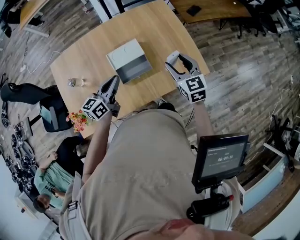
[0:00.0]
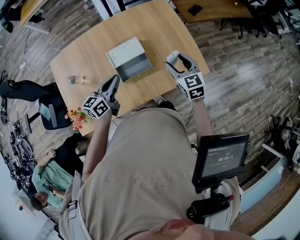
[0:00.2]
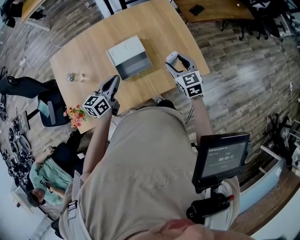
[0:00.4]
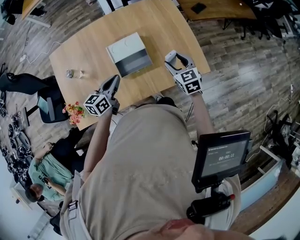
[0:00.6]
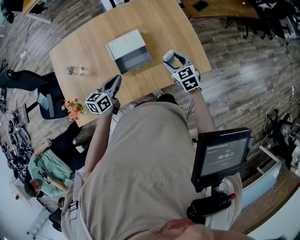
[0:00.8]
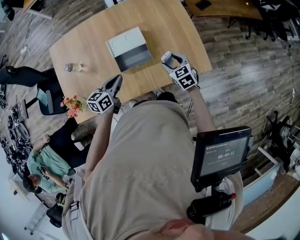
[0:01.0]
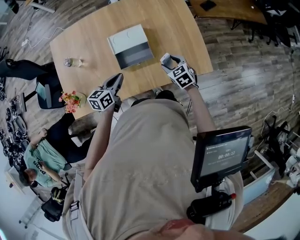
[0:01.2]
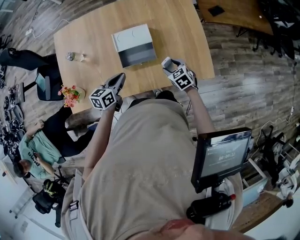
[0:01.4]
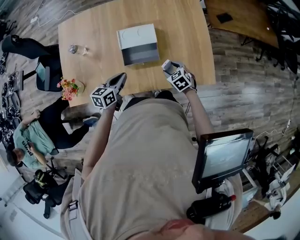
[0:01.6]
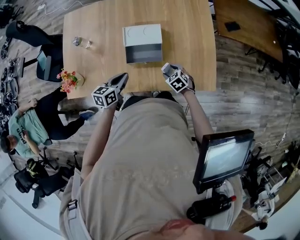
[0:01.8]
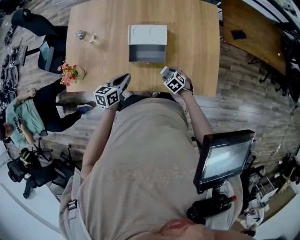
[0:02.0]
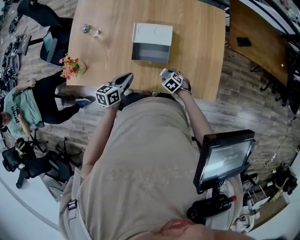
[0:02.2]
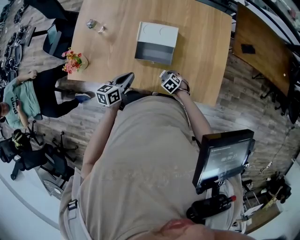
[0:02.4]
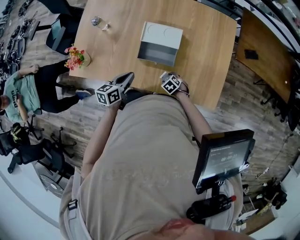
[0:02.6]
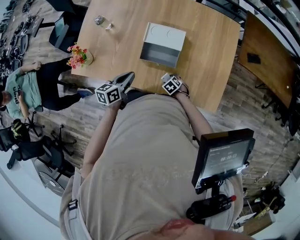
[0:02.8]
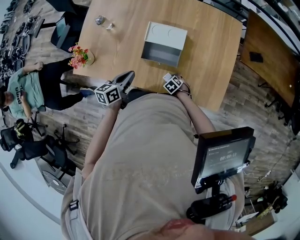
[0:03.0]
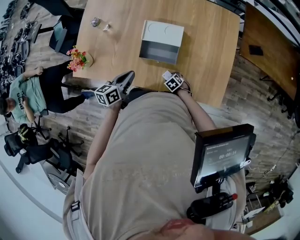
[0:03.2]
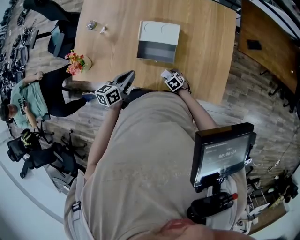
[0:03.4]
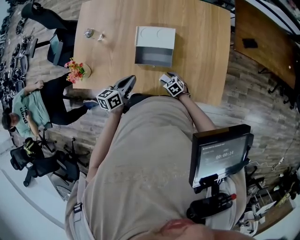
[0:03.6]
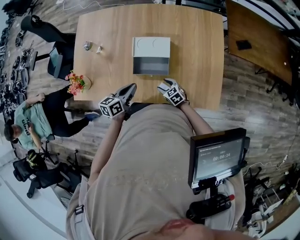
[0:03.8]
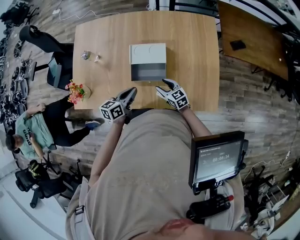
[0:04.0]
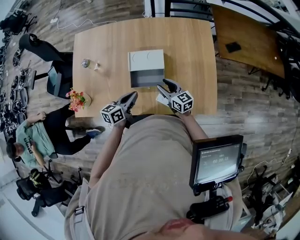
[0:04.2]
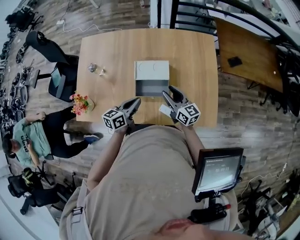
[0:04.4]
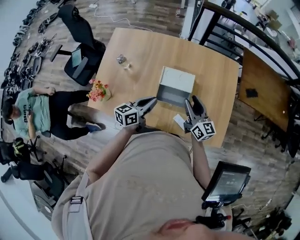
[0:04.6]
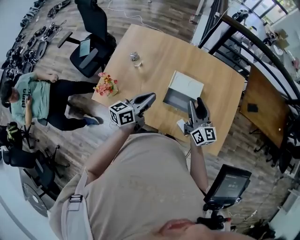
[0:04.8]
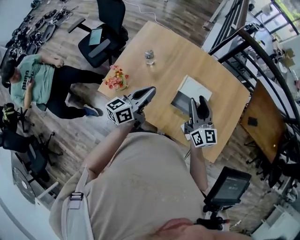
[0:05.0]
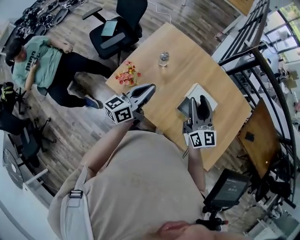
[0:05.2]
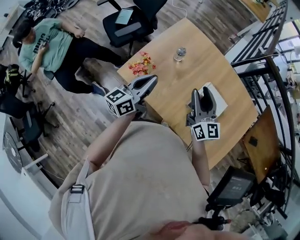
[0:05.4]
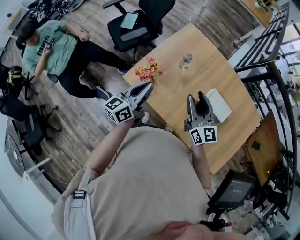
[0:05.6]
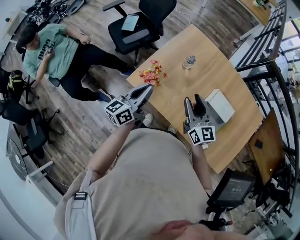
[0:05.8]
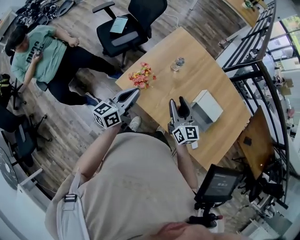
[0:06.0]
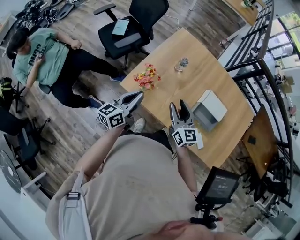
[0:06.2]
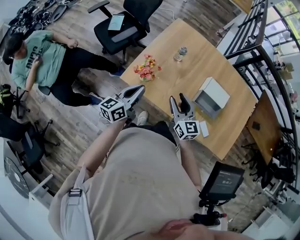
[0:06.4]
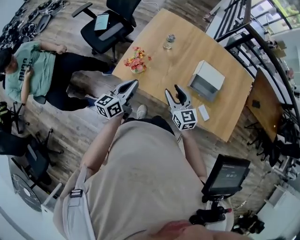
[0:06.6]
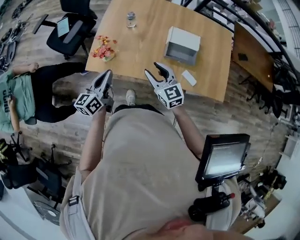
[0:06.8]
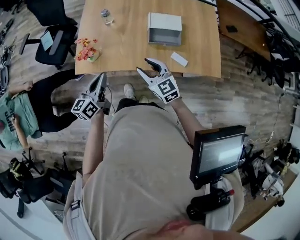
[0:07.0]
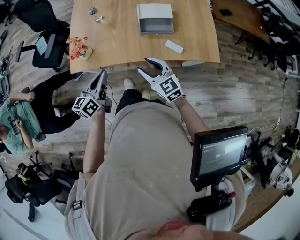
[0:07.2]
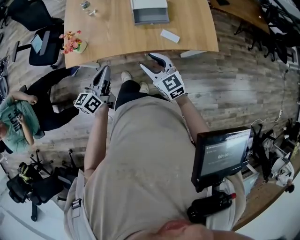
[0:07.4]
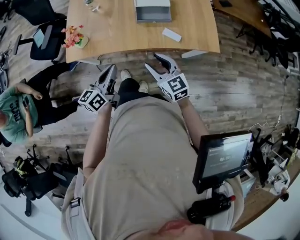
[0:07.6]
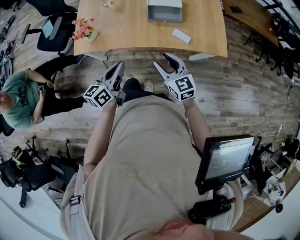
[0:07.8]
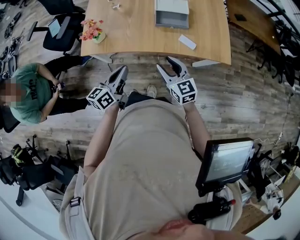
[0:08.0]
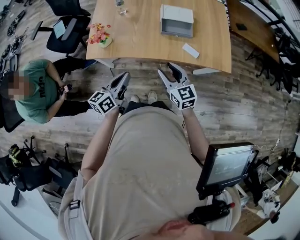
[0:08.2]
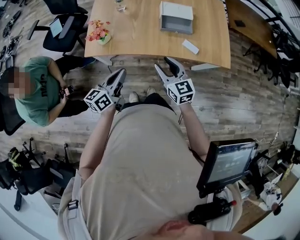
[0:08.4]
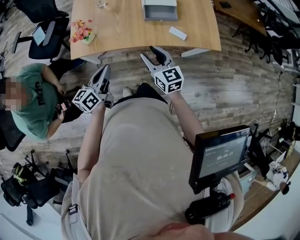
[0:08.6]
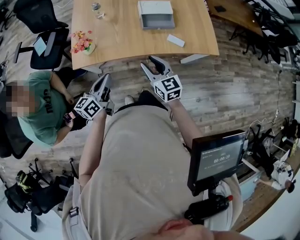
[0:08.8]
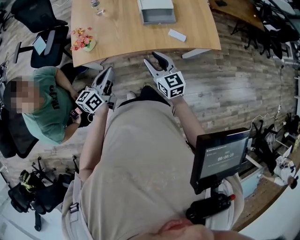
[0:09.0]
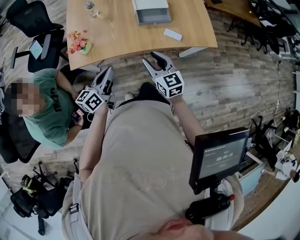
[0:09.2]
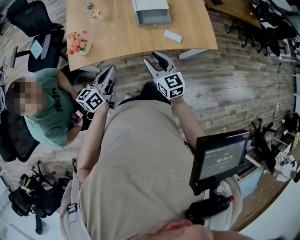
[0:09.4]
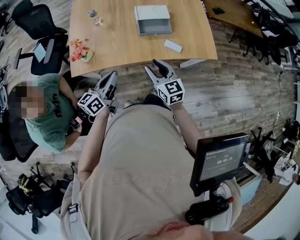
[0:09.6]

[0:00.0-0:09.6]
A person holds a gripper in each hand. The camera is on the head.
0:00.0 to 0:01.6: The left gripper moves downward, about 15 cm, and changes its angle by roughly 20 degrees, while the right gripper shifts some 25 cm downward, and angles its fingers downward, by roughly 30 degrees.
0:01.6 to 0:03.2: The right gripper moves downward, some 20 cm, and changes its angle by roughly 30 degrees. The left gripper turns by approximately 20 degrees.
0:03.2 to 0:04.8: The right gripper moves upward, about 40 cm, and angles its fingers upward, by approximately 70 degrees. Meanwhile the left gripper moves upward, about 15 cm, and swivels about 20 degrees.
0:04.8 to 0:06.4: The grippers both shift to the left by roughly 35 cm. The right gripper rotates roughly 20 degrees.
0:06.4 to 0:08.0: The left gripper is displaced to the right and backward by about 25 cm, and turns by about 20 degrees. Meanwhile the right gripper travels backward and to the right by about 30 cm.
0:08.0 to 0:09.6: The left gripper goes to the left and returns, roughly 10 cm each way, while the right gripper moves some 10 cm to the left and comes back.

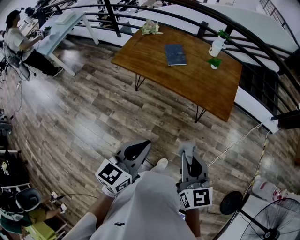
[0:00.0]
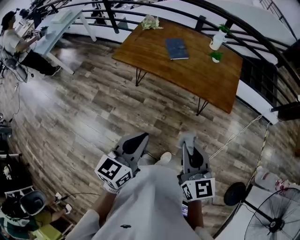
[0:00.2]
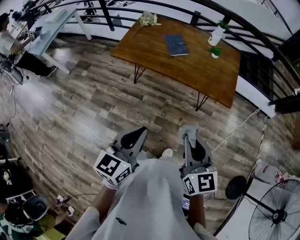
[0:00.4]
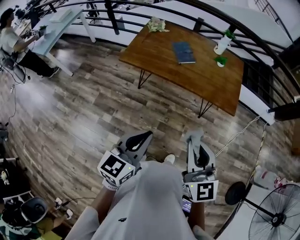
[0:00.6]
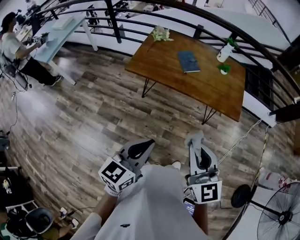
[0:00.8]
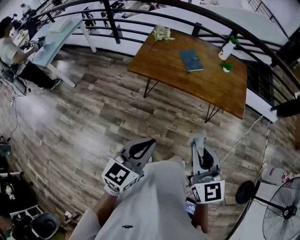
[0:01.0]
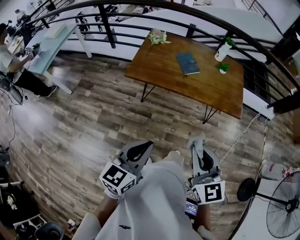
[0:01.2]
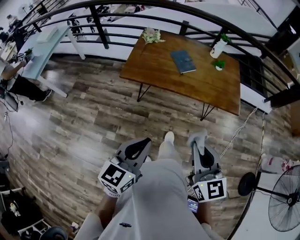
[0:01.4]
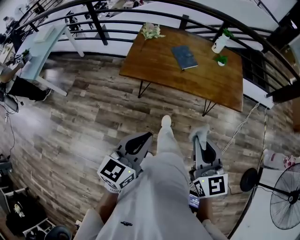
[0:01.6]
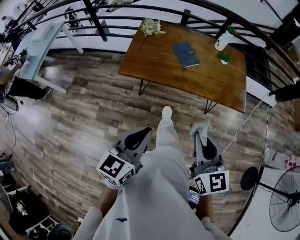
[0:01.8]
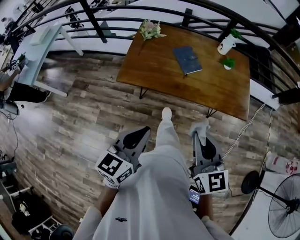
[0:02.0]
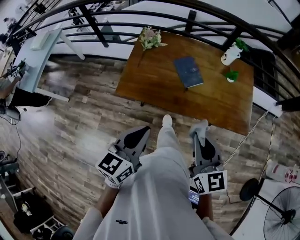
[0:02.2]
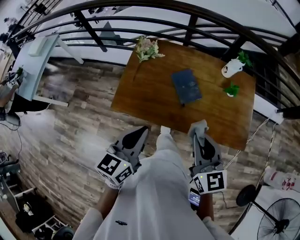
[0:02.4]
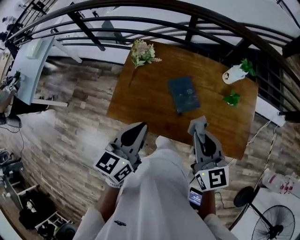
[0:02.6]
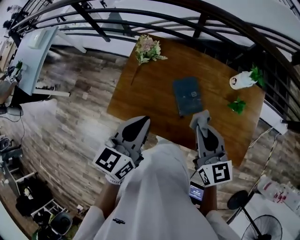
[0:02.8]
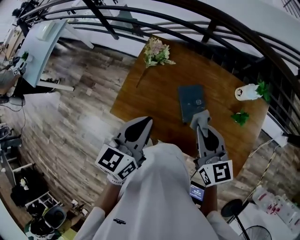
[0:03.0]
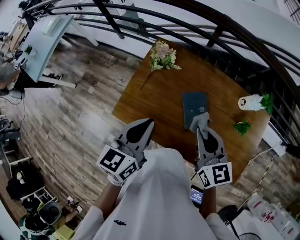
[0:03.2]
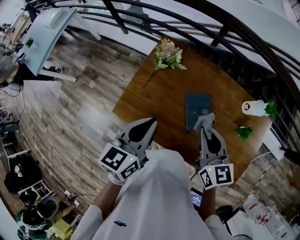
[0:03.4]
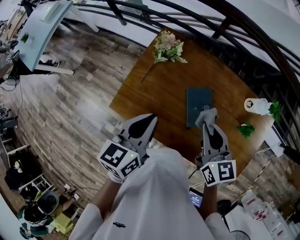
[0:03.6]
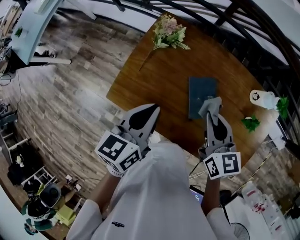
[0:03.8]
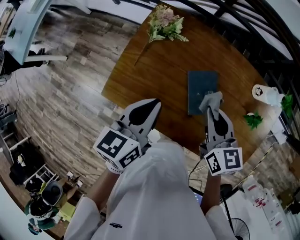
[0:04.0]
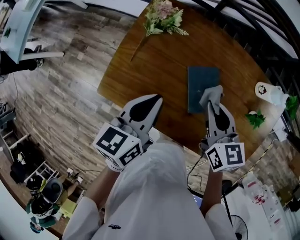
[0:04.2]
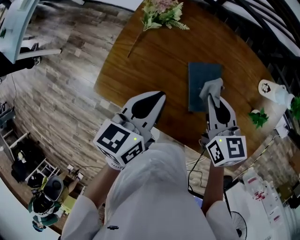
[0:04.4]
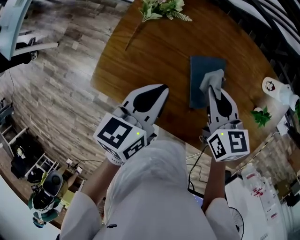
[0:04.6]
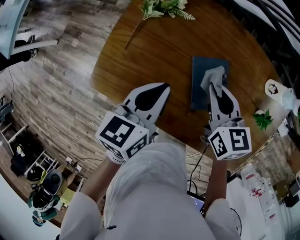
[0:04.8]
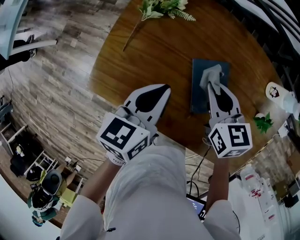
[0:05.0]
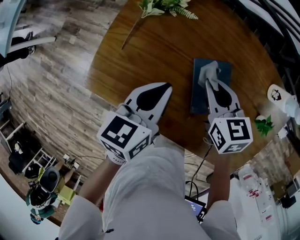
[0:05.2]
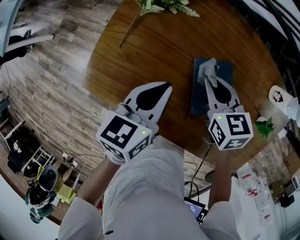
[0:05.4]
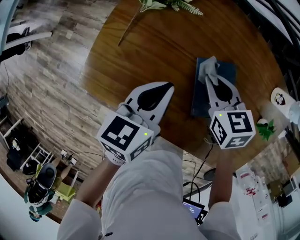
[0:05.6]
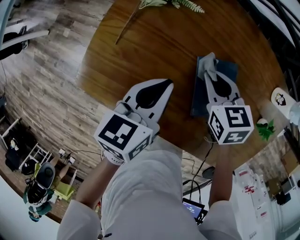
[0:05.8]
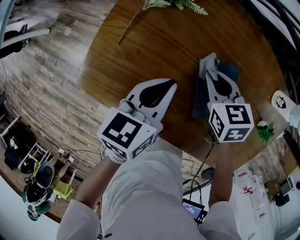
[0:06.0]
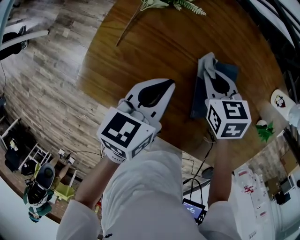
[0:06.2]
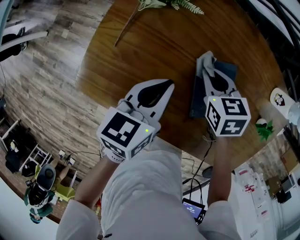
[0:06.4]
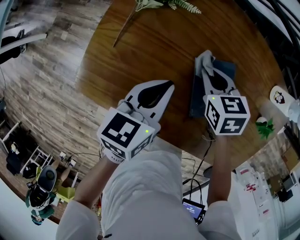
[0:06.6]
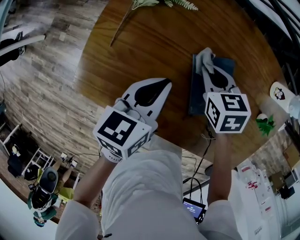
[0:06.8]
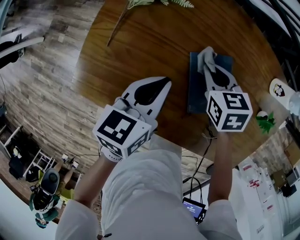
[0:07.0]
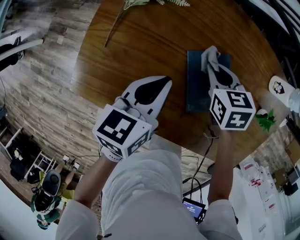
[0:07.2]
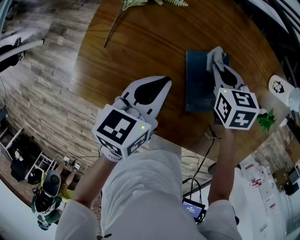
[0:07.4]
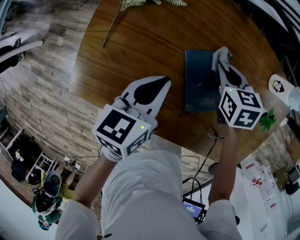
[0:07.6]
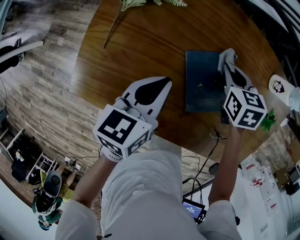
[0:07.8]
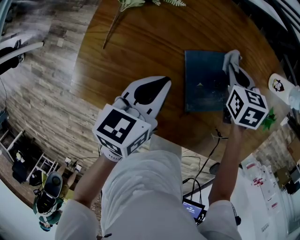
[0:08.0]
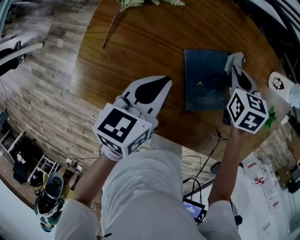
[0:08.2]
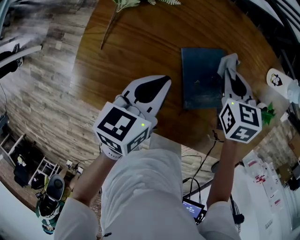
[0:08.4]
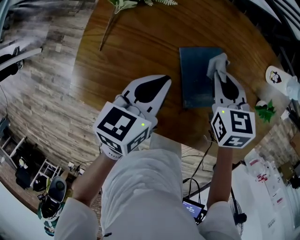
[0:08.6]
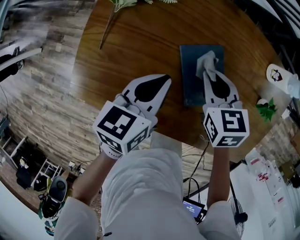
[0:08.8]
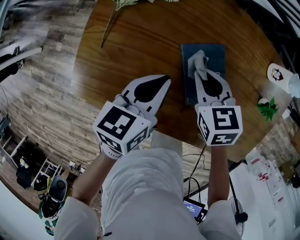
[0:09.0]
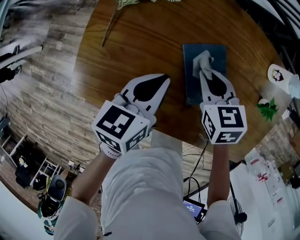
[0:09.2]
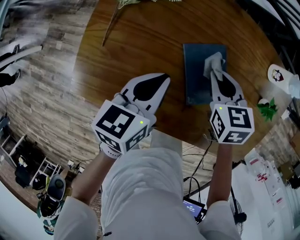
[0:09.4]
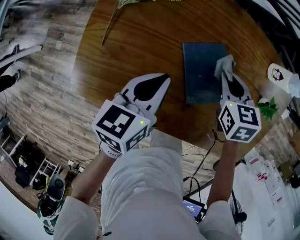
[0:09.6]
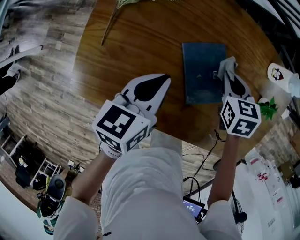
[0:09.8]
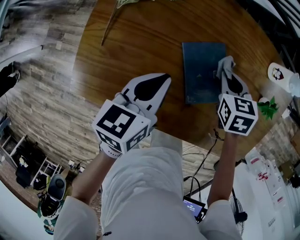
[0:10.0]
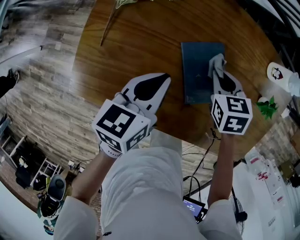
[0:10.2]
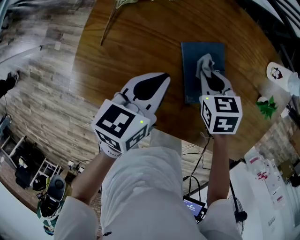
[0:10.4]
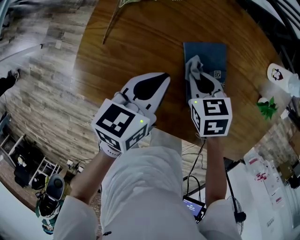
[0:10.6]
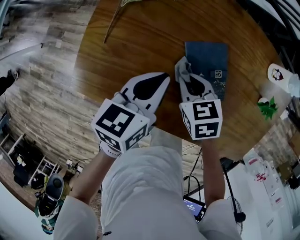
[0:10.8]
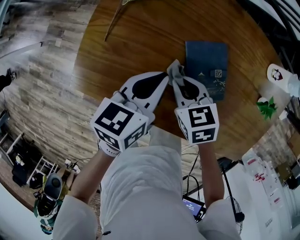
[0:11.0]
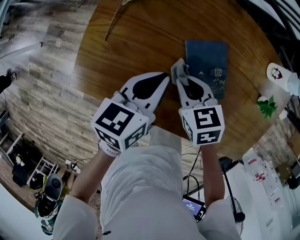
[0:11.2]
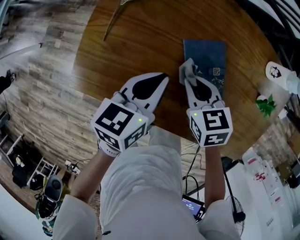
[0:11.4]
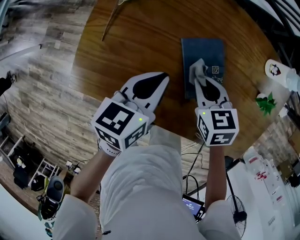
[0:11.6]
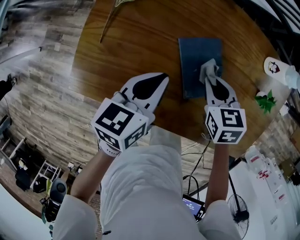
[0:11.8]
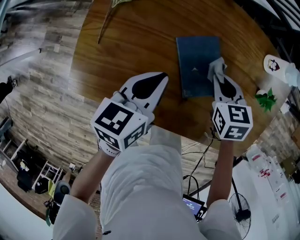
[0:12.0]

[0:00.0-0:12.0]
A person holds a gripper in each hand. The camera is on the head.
0:00.0 to 0:01.6: The two grippers go some 25 cm to the left.
0:01.6 to 0:03.0: Both grippers are carried forward, about 50 cm. The right gripper rotates approximately 20 degrees.
0:03.0 to 0:04.4: The two grippers go some 20 cm downward and forward.
0:04.4 to 0:06.0: The left gripper is displaced downward by some 10 cm. Meanwhile the right gripper travels downward and forward by some 15 cm, and swivels some 20 degrees.
0:06.0 to 0:07.6: The right gripper moves to the right, about 10 cm.
0:07.6 to 0:09.0: The right gripper heads backward and to the left, covering about 10 cm.
0:09.0 to 0:10.4: The right gripper travels to the right and back again, roughly 10 cm each way.
0:10.4 to 0:12.0: The right gripper moves to the right, roughly 5 cm.

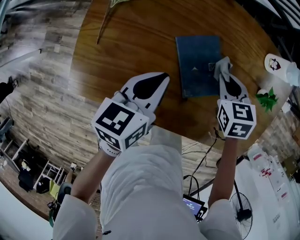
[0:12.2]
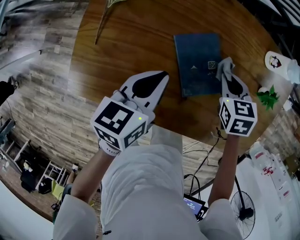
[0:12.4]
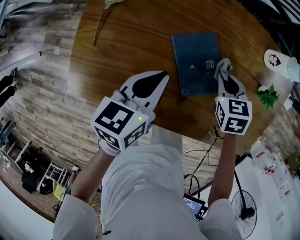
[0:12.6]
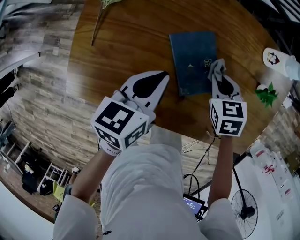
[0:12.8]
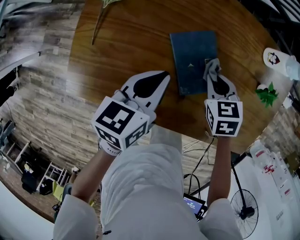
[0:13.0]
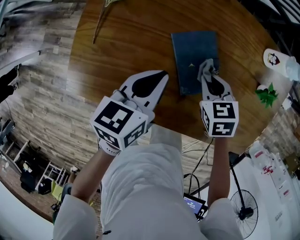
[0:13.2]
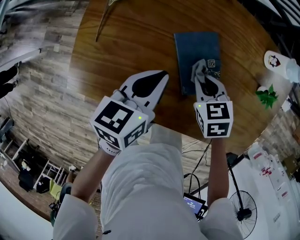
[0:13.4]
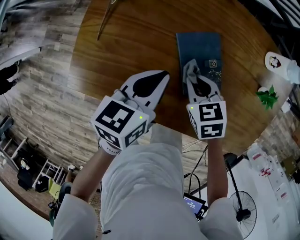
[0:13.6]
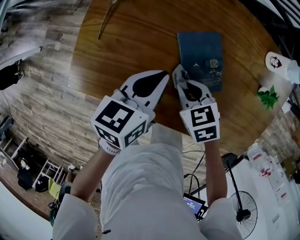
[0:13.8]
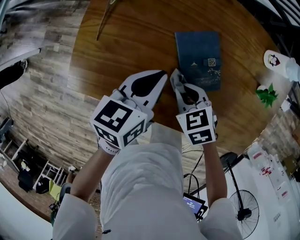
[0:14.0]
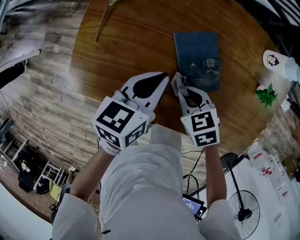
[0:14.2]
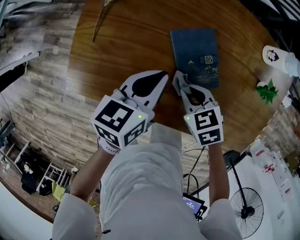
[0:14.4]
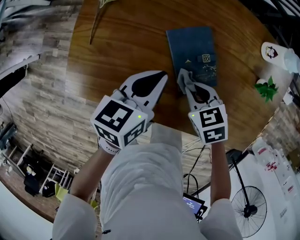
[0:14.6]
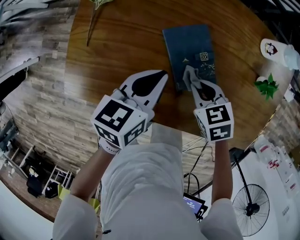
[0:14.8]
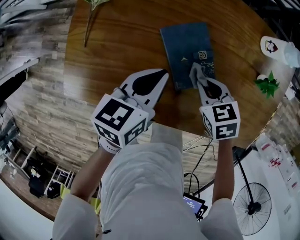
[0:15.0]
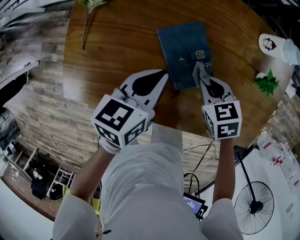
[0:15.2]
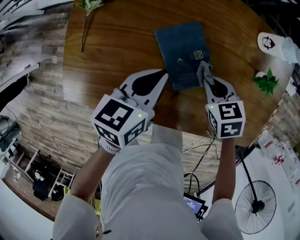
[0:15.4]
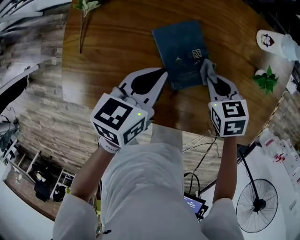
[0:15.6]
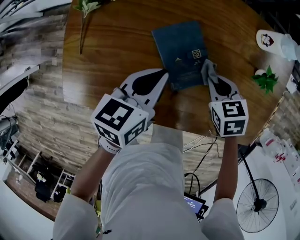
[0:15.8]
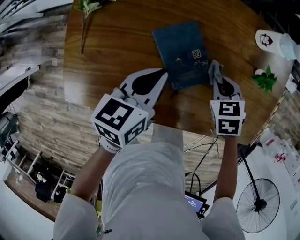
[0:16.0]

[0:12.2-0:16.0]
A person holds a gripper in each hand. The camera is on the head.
0:12.2 to 0:13.4: The right gripper goes some 10 cm to the left and backward.
0:13.4 to 0:14.8: The right gripper moves some 5 cm to the left and comes back.
0:14.8 to 0:16.0: The right gripper moves to the right, about 10 cm.
